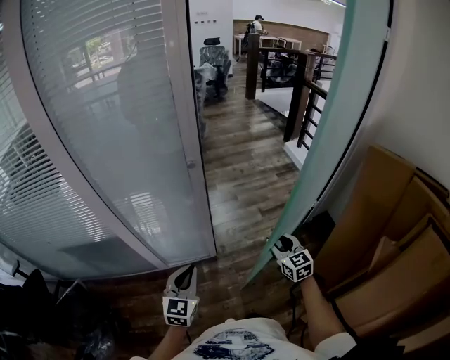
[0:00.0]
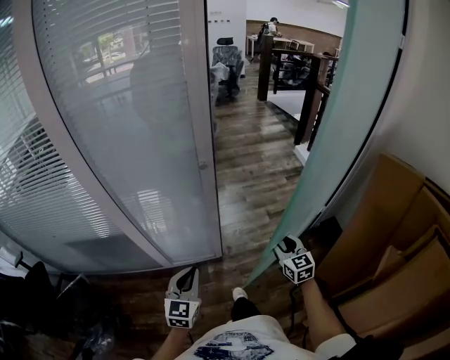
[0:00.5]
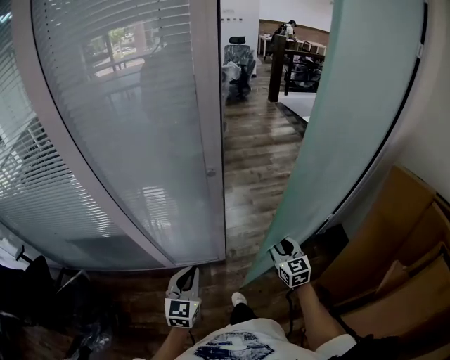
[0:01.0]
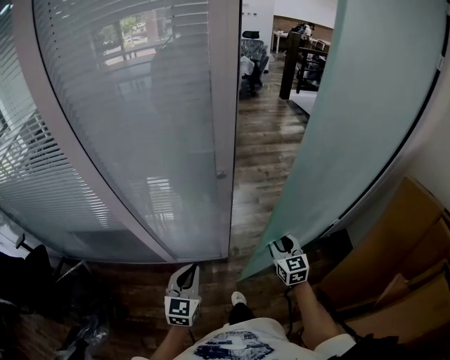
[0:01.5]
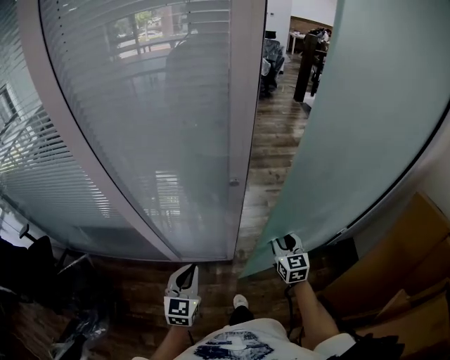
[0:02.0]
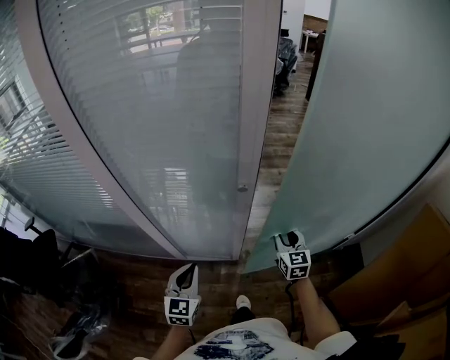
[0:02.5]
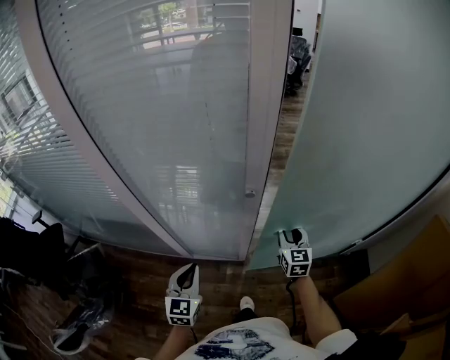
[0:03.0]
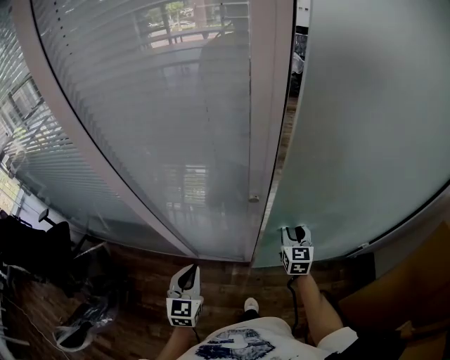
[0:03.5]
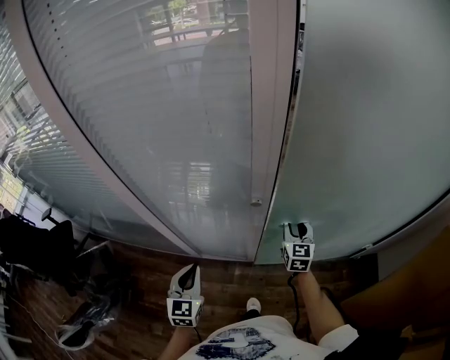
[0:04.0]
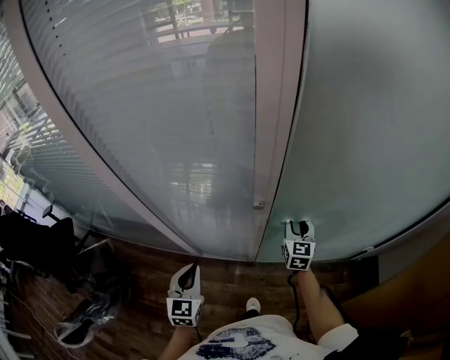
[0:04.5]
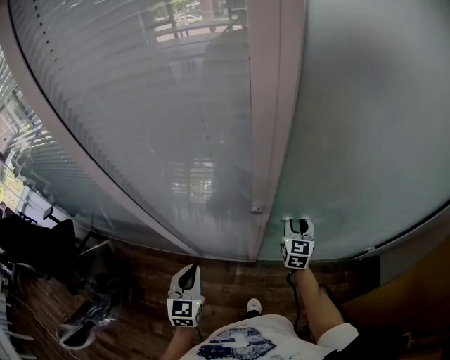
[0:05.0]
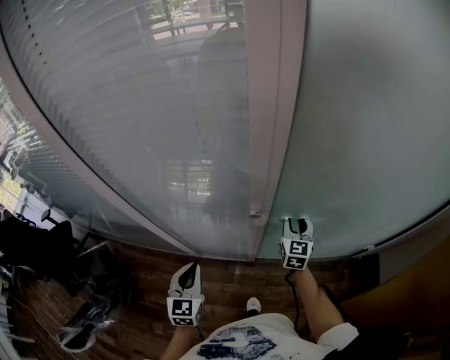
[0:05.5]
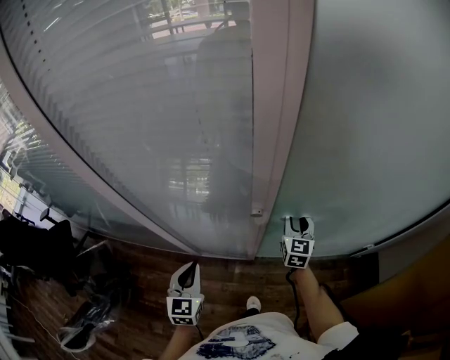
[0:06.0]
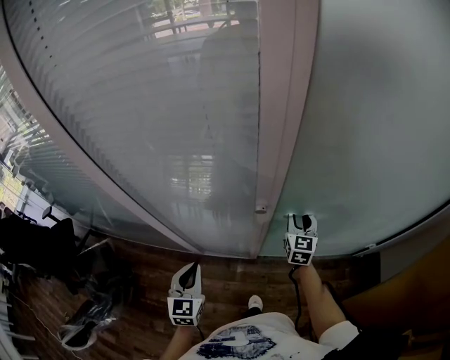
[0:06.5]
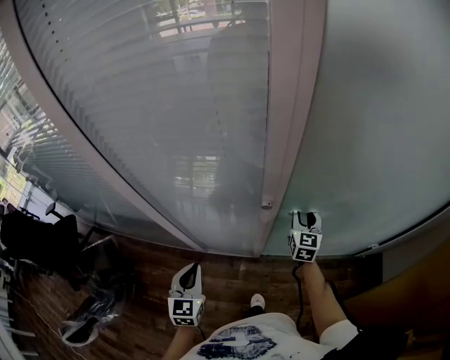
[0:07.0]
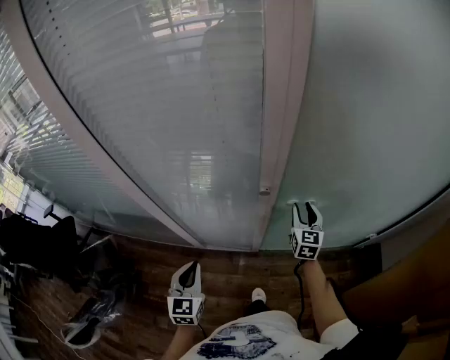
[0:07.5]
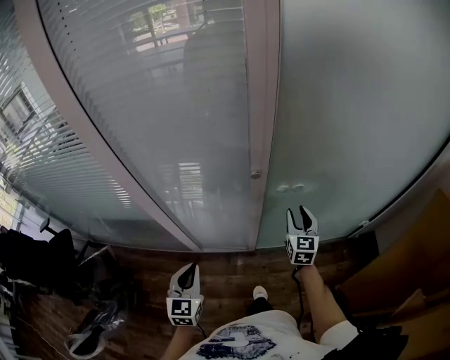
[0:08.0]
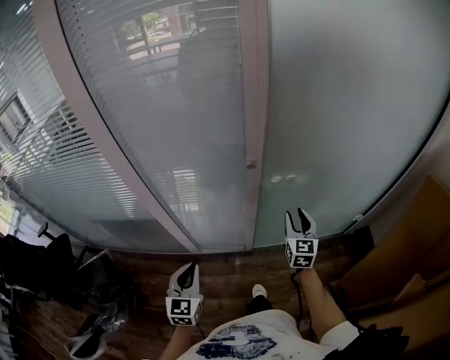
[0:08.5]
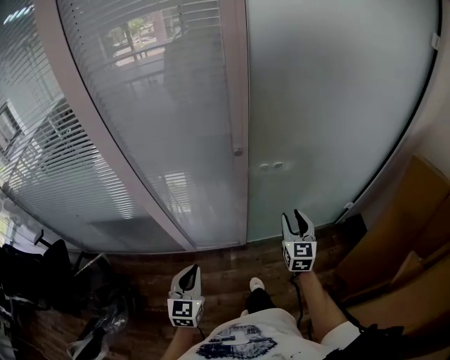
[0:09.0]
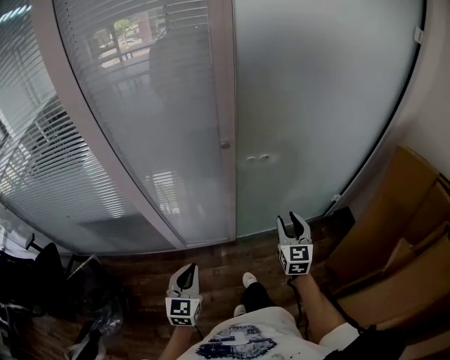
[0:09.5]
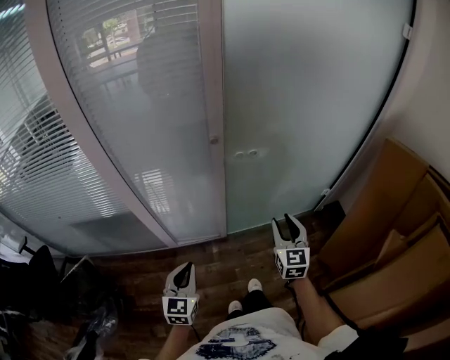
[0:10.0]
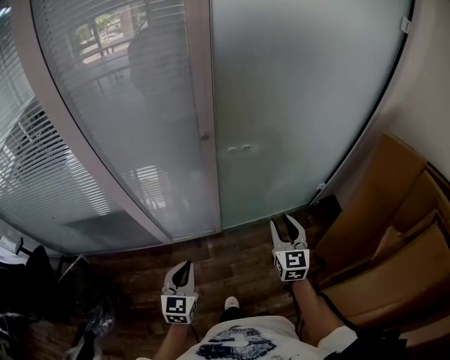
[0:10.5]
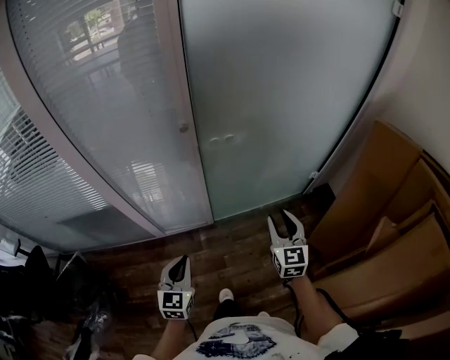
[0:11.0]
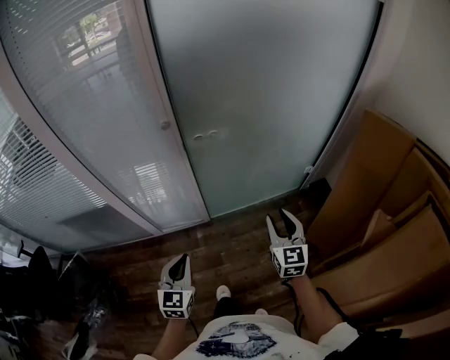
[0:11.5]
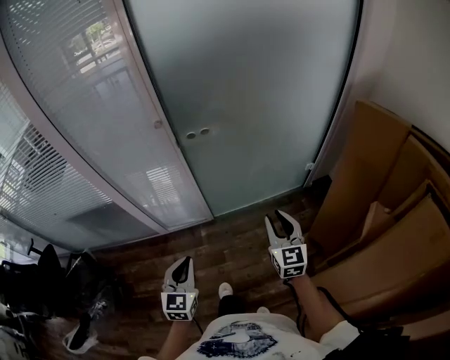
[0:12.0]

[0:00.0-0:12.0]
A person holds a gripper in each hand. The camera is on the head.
0:00.0 to 0:02.0: The right gripper shifts roughly 15 cm forward and to the left, while the left gripper heads forward and to the left, covering about 10 cm.
0:02.0 to 0:04.0: The left gripper changes place by roughly 5 cm; the right gripper heads forward, covering approximately 15 cm.
0:04.0 to 0:06.0: The grippers move only a little.
0:06.0 to 0:08.0: Both grippers travel together backward, roughly 10 cm.
0:08.0 to 0:10.0: The left gripper heads backward and to the right, covering about 15 cm. Meanwhile the right gripper heads backward, covering roughly 25 cm.
0:10.0 to 0:12.0: The right gripper travels to the right and backward by some 15 cm. The left gripper is displaced to the right by roughly 15 cm.

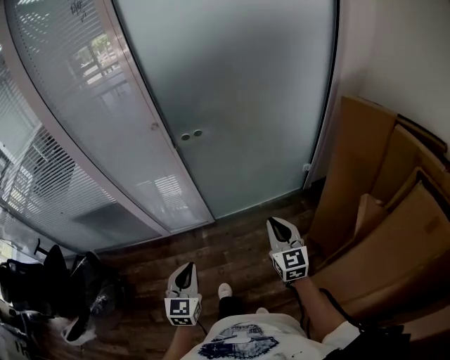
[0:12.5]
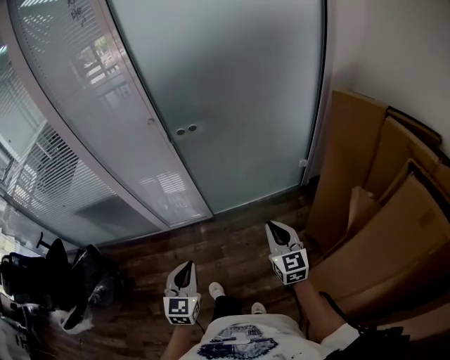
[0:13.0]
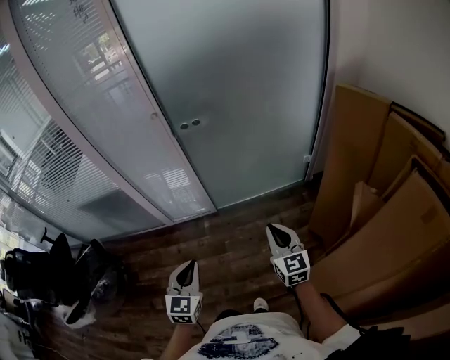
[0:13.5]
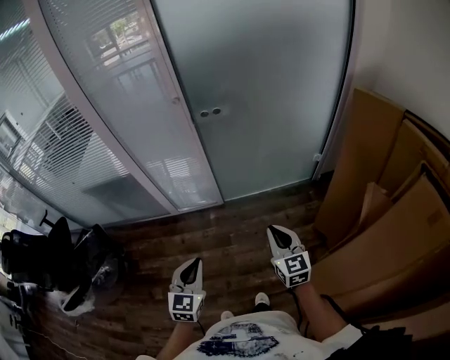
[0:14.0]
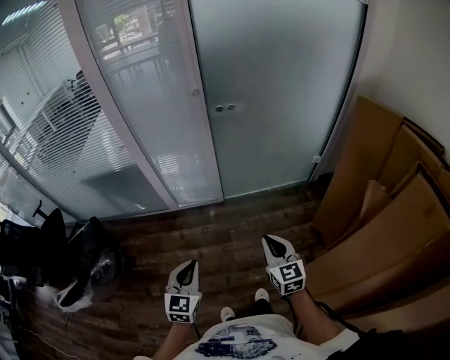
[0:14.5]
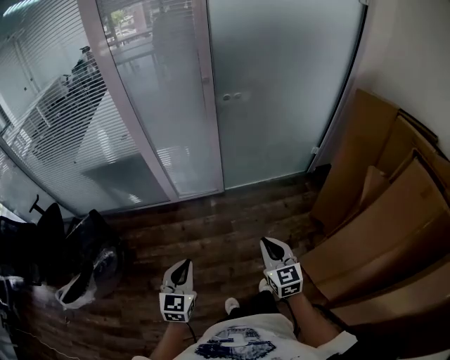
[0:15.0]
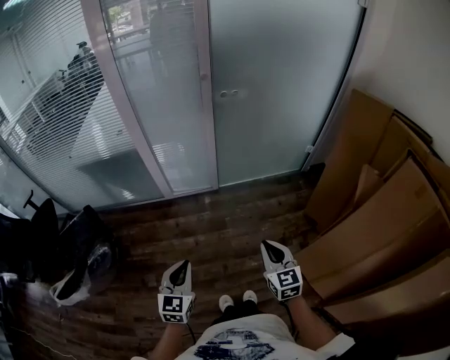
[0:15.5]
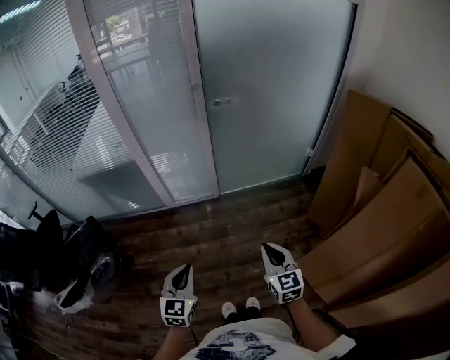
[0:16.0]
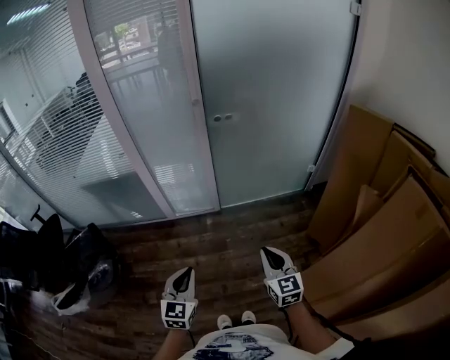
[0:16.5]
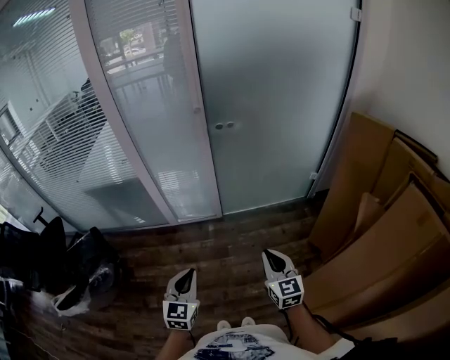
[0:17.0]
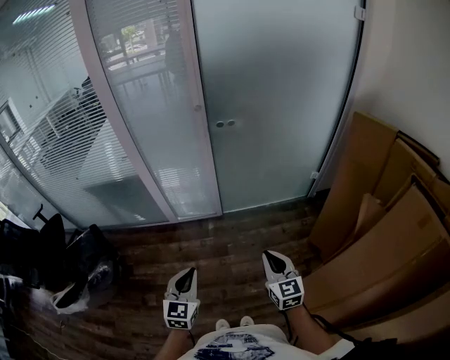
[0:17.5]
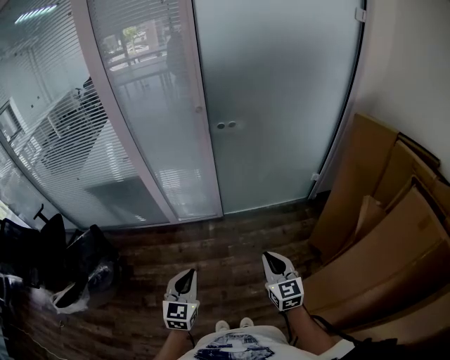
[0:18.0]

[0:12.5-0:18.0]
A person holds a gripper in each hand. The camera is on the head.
0:12.5 to 0:14.5: The grippers both shift backward and to the left by some 20 cm.
0:14.5 to 0:16.0: Both grippers move backward, about 5 cm.
0:16.0 to 0:18.0: The left gripper is displaced to the right by approximately 5 cm; the right gripper travels forward by approximately 5 cm.

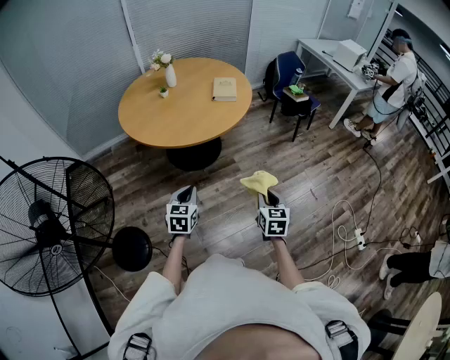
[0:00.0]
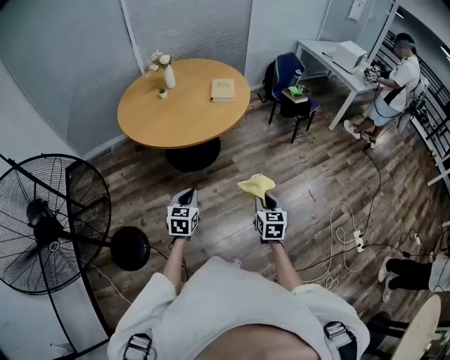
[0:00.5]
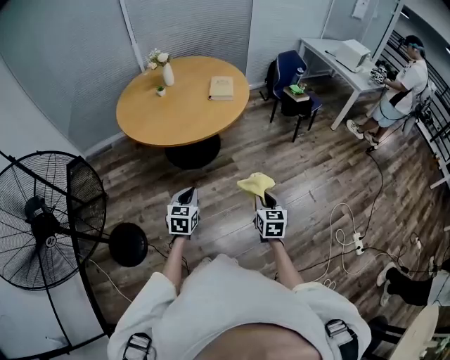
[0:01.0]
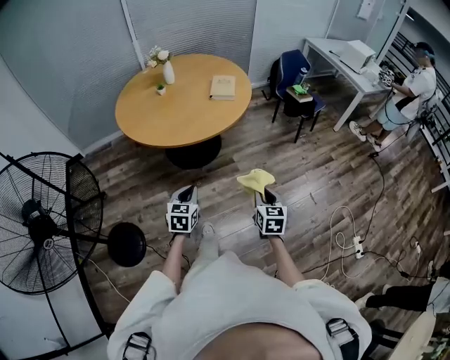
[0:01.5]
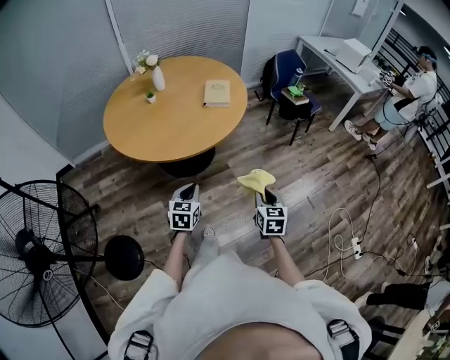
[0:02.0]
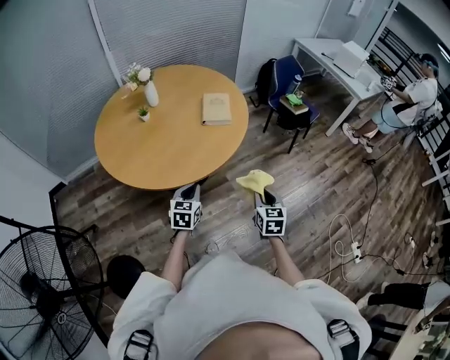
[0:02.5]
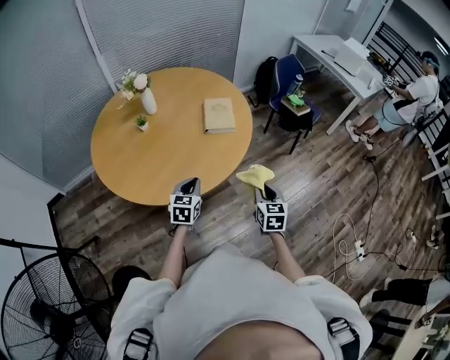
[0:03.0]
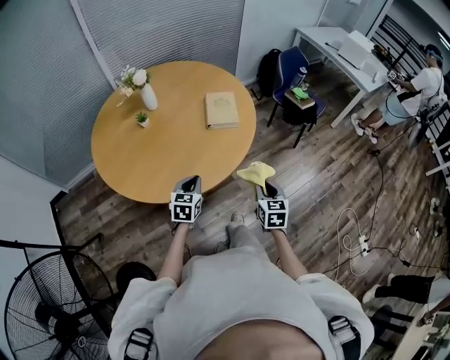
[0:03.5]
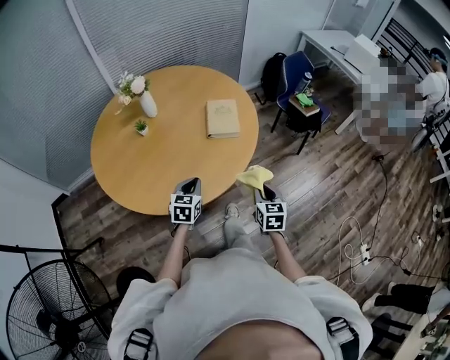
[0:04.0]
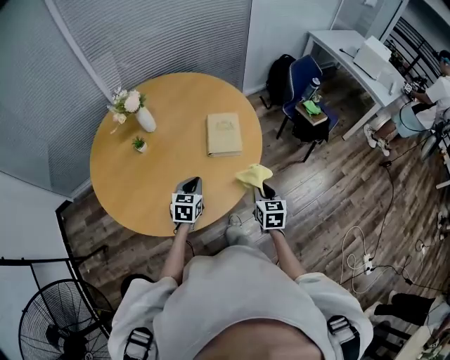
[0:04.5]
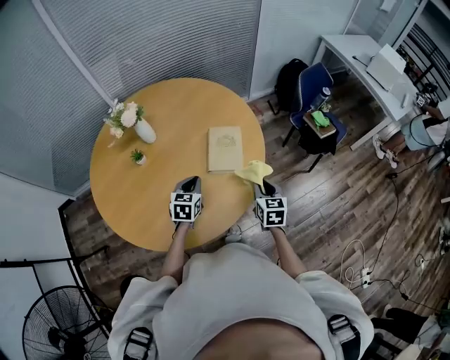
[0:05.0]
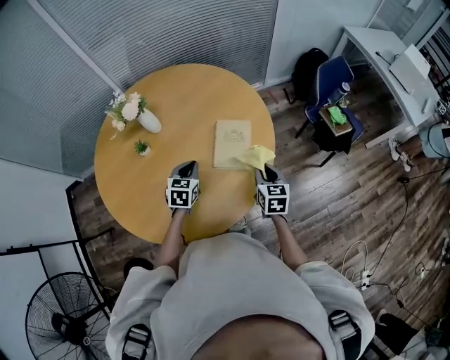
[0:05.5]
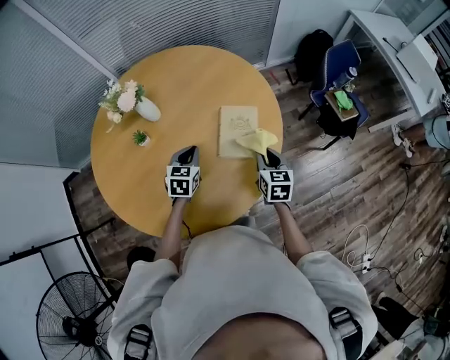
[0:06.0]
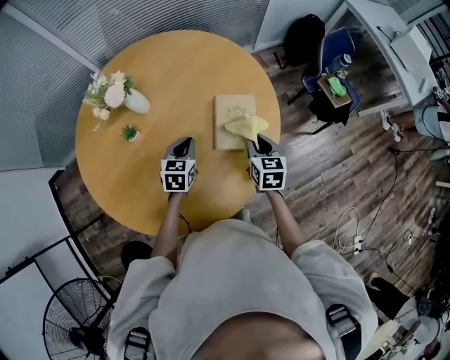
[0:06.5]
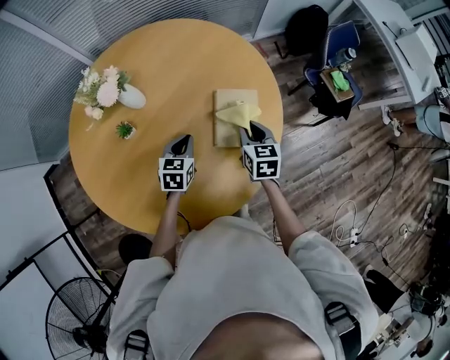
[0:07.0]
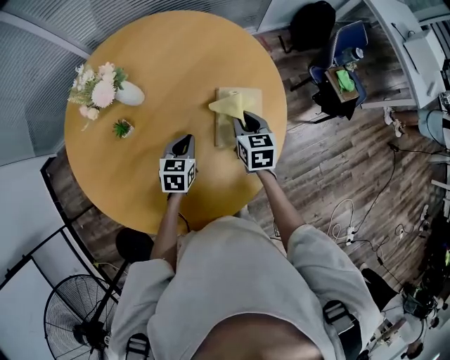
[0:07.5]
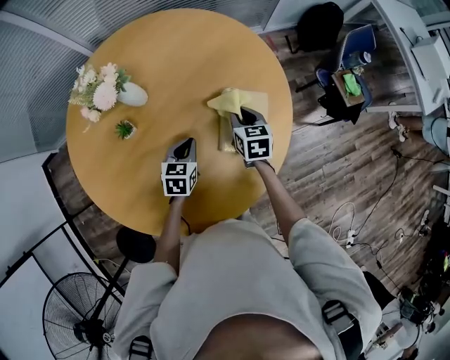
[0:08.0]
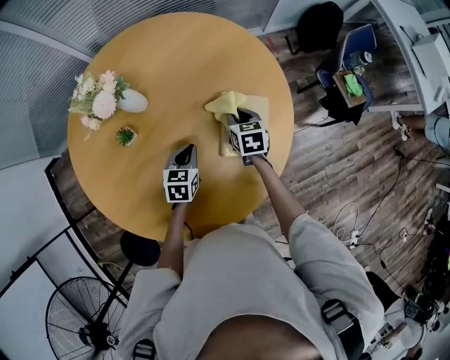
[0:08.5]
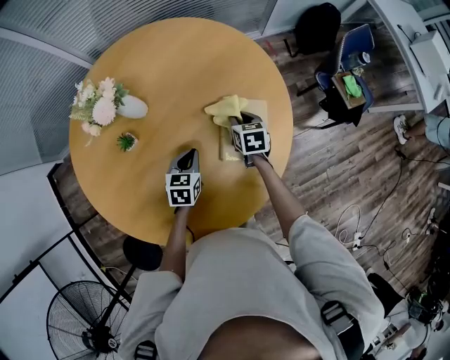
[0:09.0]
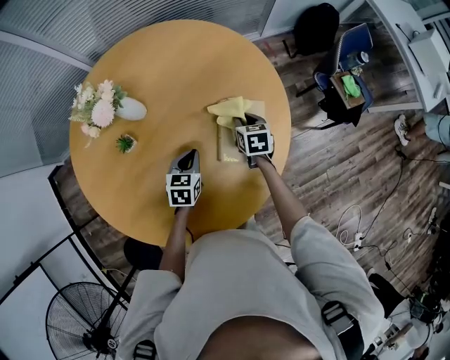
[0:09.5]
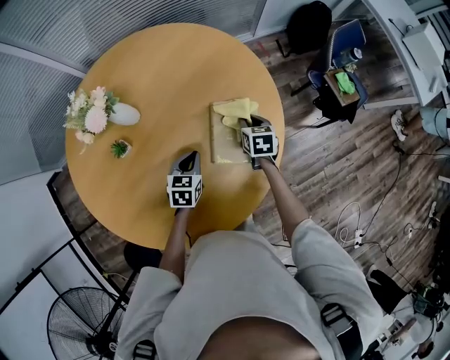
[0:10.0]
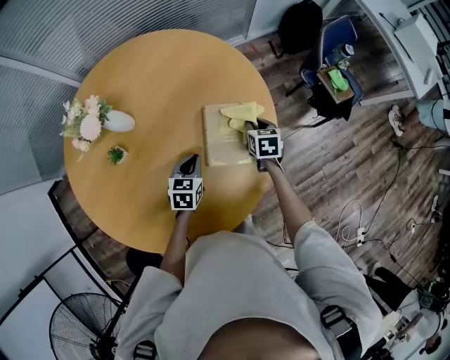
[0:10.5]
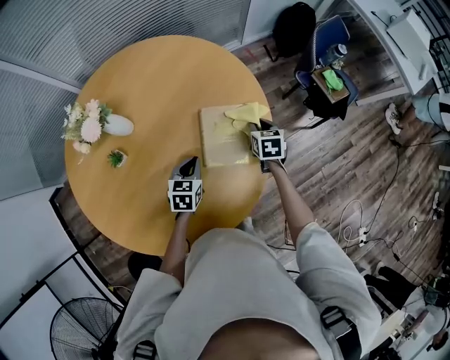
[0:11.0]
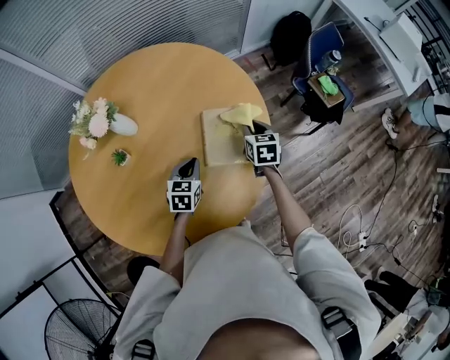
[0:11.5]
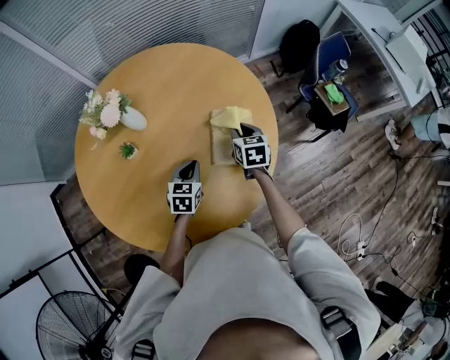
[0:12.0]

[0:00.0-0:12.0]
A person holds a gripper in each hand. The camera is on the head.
0:00.0 to 0:02.0: Both grippers travel together forward, some 15 cm.
0:02.0 to 0:04.0: The right gripper is displaced forward and to the left by approximately 25 cm; the left gripper shifts about 30 cm forward.
0:04.0 to 0:06.0: Both grippers travel together forward, about 30 cm.
0:06.0 to 0:08.0: The right gripper is displaced forward, to the left and downward by about 20 cm. Meanwhile the left gripper travels downward by approximately 5 cm.
0:08.0 to 0:10.0: The right gripper travels to the right and downward by some 10 cm.
0:10.0 to 0:12.0: The left gripper changes place by about 5 cm, while the right gripper shifts some 10 cm upward, and goes to the right and returns, roughly 5 cm each way.
